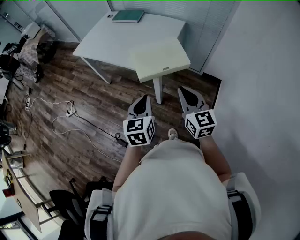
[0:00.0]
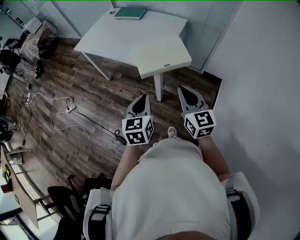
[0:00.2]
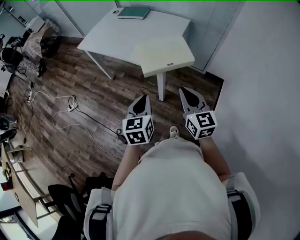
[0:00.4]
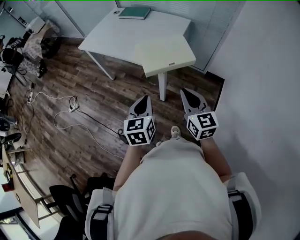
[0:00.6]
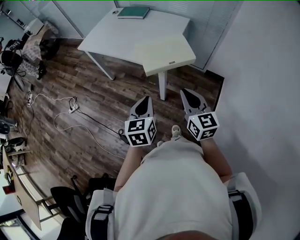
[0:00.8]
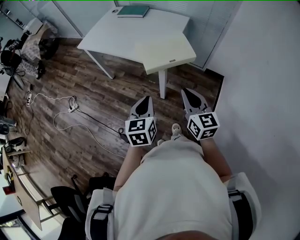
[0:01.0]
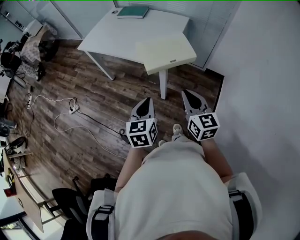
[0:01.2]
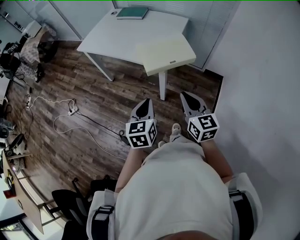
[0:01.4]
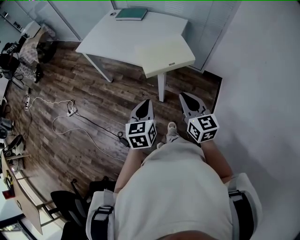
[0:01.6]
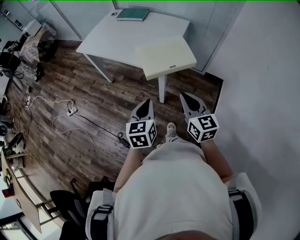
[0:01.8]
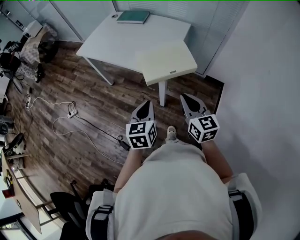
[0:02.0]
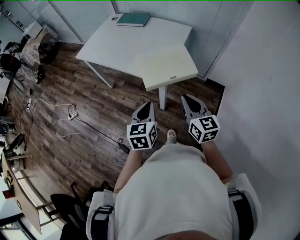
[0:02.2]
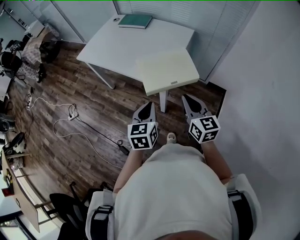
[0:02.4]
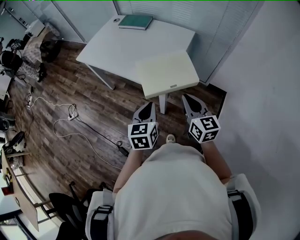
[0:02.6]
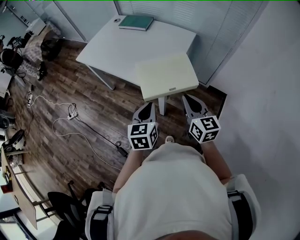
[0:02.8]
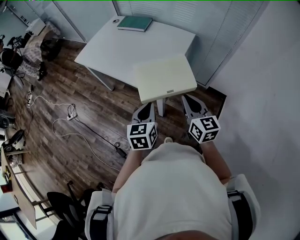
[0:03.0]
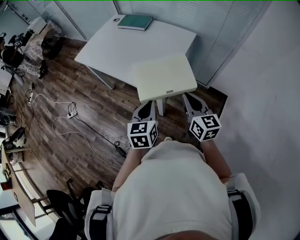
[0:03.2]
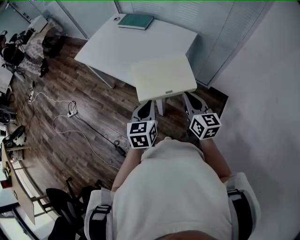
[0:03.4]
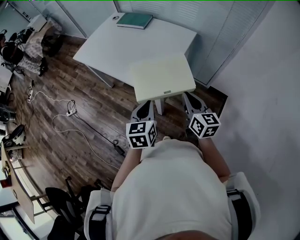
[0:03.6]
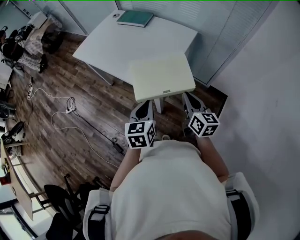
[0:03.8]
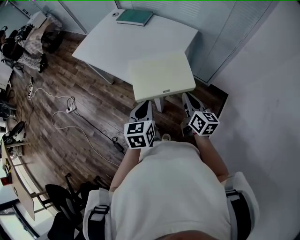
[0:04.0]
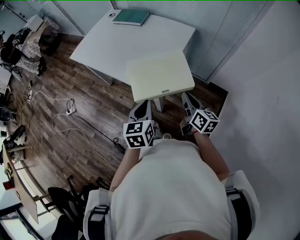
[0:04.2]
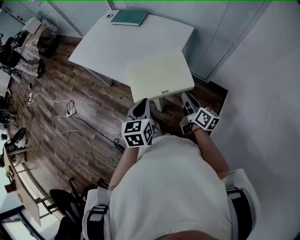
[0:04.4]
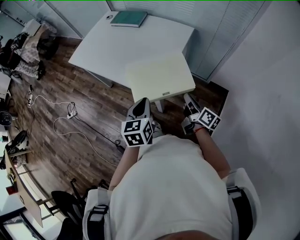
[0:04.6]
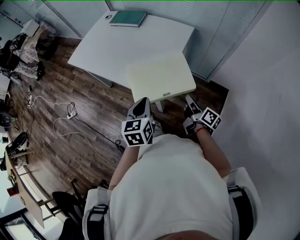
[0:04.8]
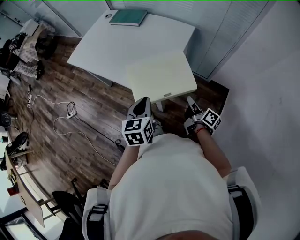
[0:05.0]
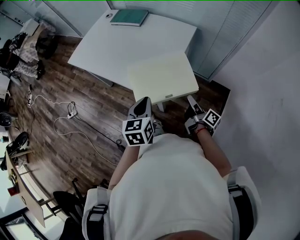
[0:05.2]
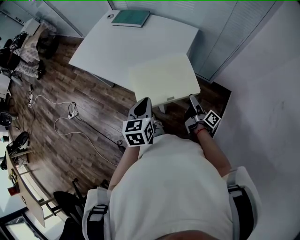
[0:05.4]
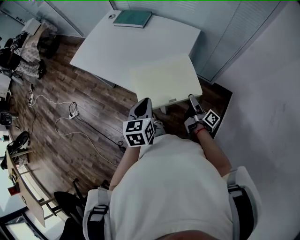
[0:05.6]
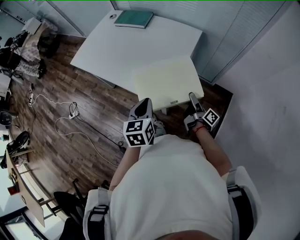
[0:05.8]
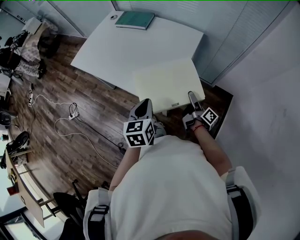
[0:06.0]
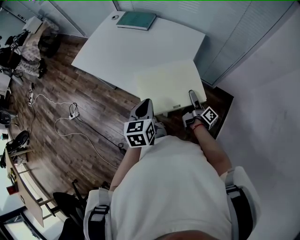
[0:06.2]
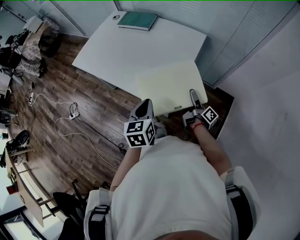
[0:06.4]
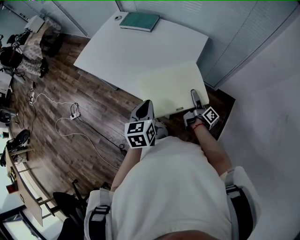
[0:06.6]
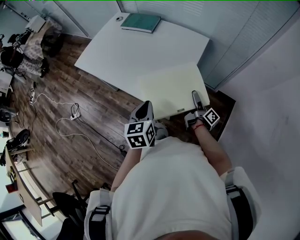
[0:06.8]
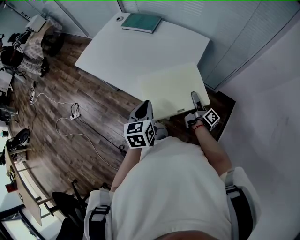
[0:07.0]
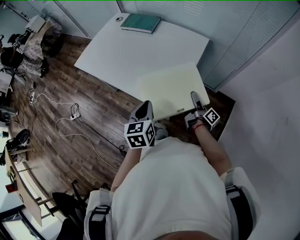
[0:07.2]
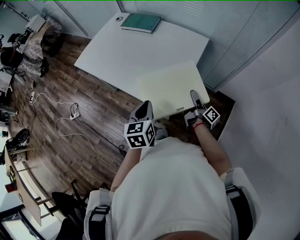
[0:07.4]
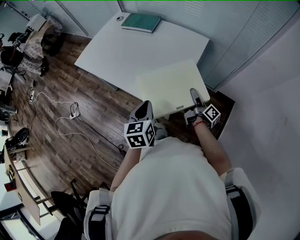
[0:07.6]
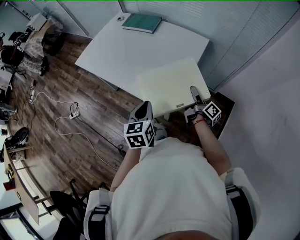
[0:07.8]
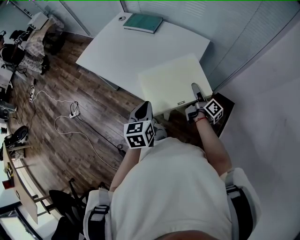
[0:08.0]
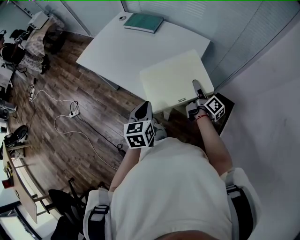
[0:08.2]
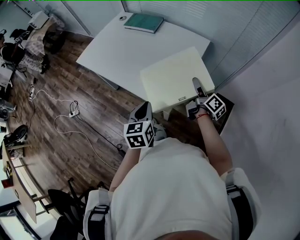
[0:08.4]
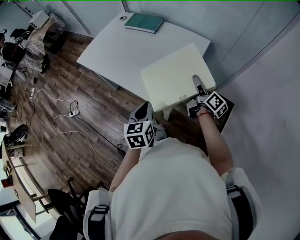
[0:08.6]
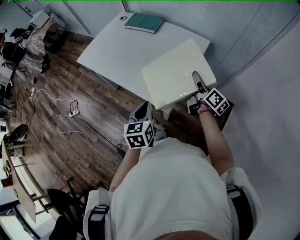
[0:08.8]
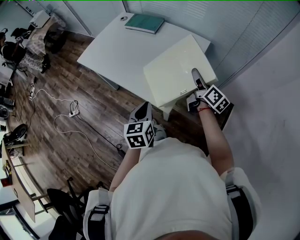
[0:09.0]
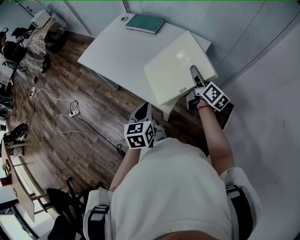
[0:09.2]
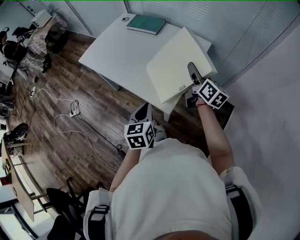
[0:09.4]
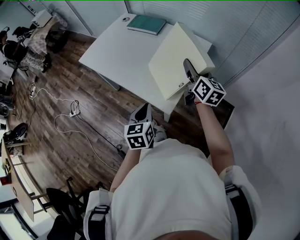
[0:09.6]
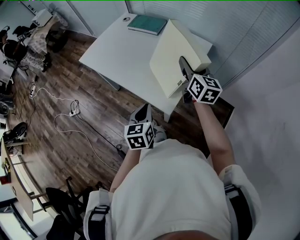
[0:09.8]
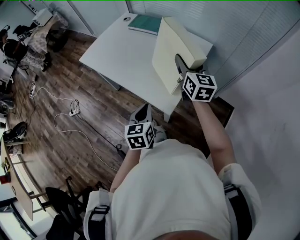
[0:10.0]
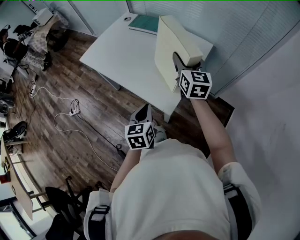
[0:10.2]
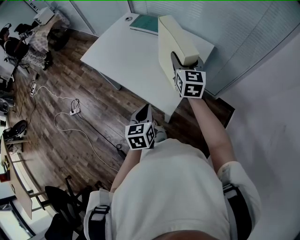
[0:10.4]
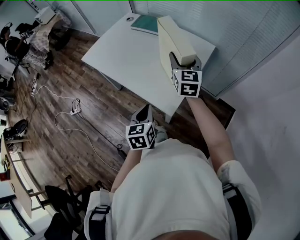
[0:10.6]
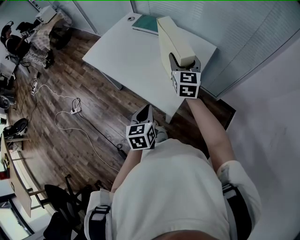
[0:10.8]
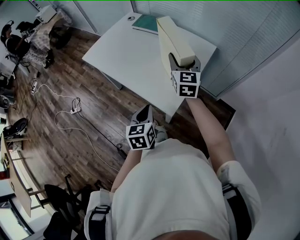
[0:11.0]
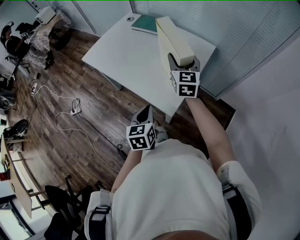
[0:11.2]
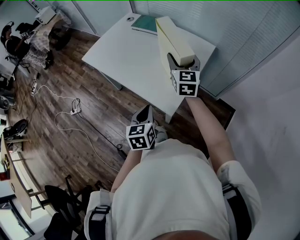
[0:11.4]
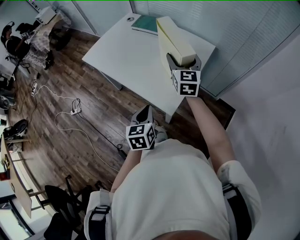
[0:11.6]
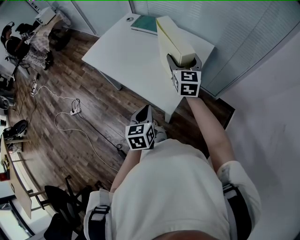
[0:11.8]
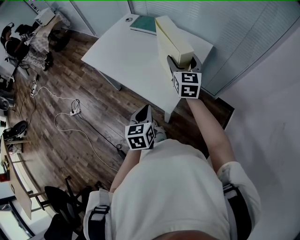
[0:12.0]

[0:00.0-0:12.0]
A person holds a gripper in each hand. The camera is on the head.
0:00.0 to 0:01.6: The left gripper shifts by some 5 cm. Meanwhile the right gripper ends up some 5 cm from where it was.
0:01.6 to 0:03.0: The grippers both shift forward by some 15 cm.
0:03.0 to 0:04.4: The right gripper goes some 10 cm downward and to the right, and swivels about 40 degrees.
0:04.4 to 0:06.0: The left gripper shifts some 5 cm forward; the right gripper goes approximately 10 cm downward and forward, rotates approximately 40 degrees, and opens up.
0:06.0 to 0:07.6: The right gripper ends up approximately 5 cm from where it was, and closes its fingers.
0:07.6 to 0:09.0: The right gripper is displaced upward and forward by approximately 15 cm, and swivels about 30 degrees.
0:09.0 to 0:10.4: The right gripper heads to the left, upward and forward, covering approximately 15 cm, and rotates around the line of its fingers by about 50 degrees, counterclockwise from behind.
0:10.4 to 0:12.0: The grippers make only small movements.

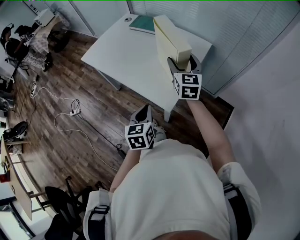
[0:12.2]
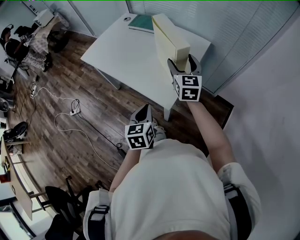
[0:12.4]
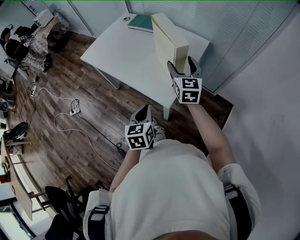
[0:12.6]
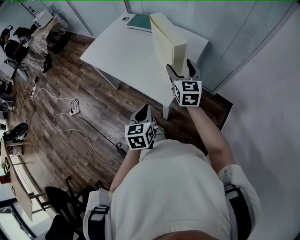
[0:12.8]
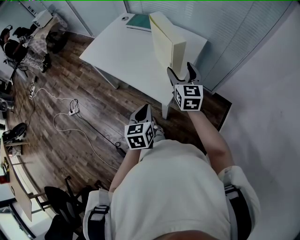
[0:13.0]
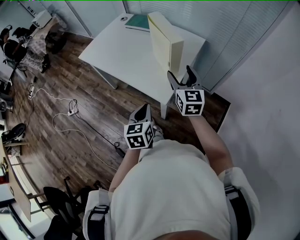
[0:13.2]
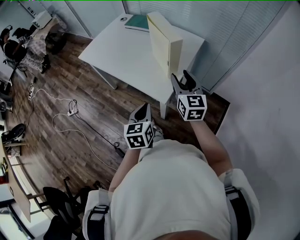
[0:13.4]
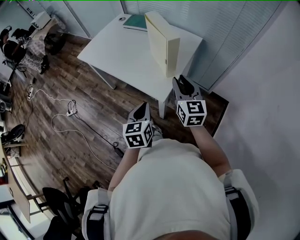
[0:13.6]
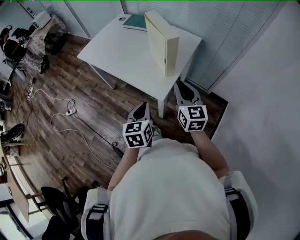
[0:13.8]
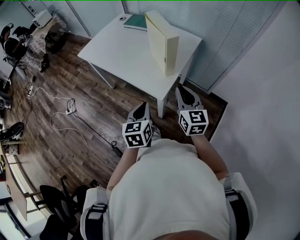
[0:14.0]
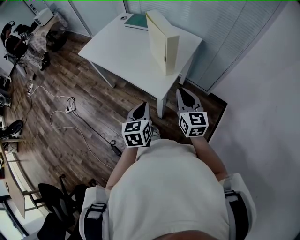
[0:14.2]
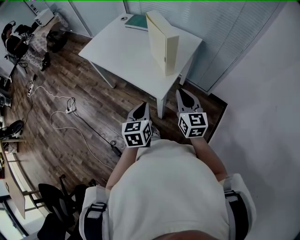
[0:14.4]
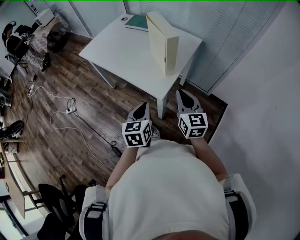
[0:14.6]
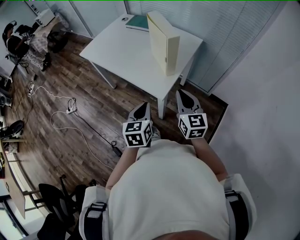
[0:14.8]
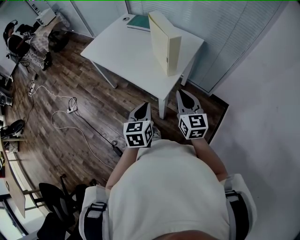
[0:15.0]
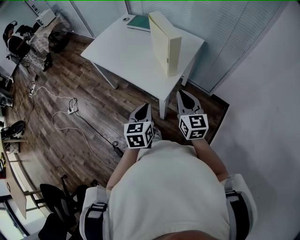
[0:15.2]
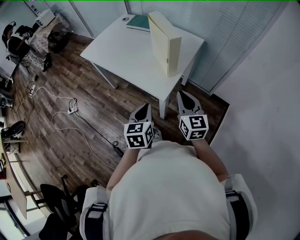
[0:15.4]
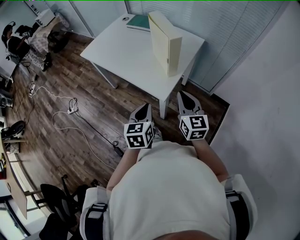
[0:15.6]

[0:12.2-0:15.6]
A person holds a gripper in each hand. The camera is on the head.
0:12.2 to 0:13.8: The left gripper heads backward, covering some 5 cm; the right gripper is displaced backward by approximately 20 cm, and closes.
0:13.8 to 0:15.6: The grippers stay close to where they were, moving slightly.

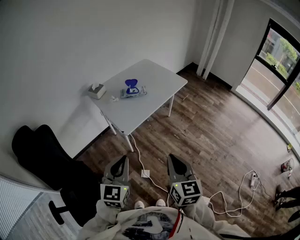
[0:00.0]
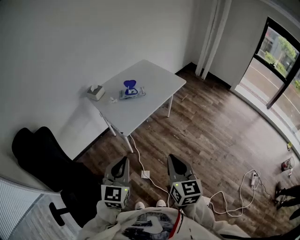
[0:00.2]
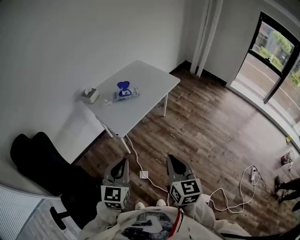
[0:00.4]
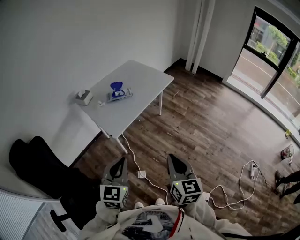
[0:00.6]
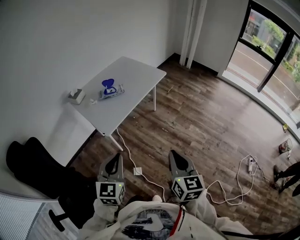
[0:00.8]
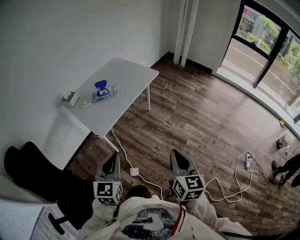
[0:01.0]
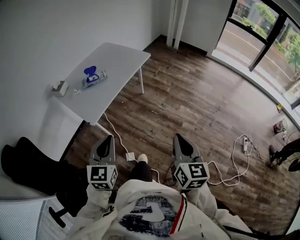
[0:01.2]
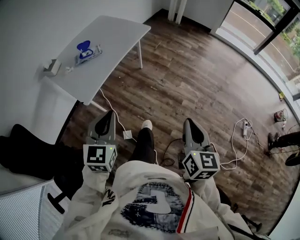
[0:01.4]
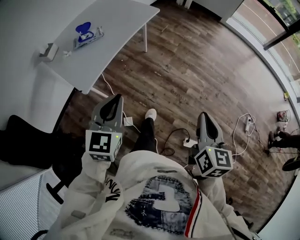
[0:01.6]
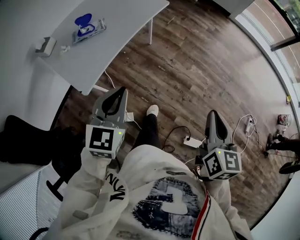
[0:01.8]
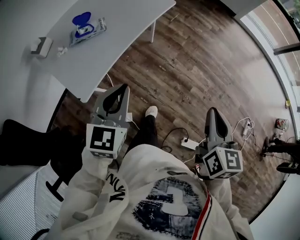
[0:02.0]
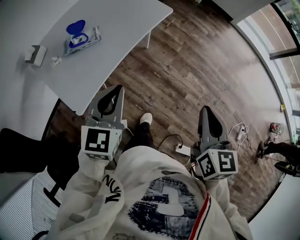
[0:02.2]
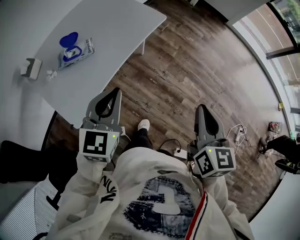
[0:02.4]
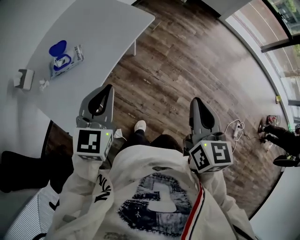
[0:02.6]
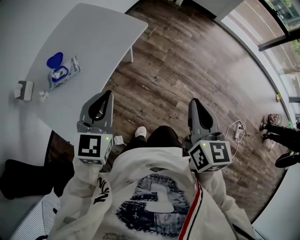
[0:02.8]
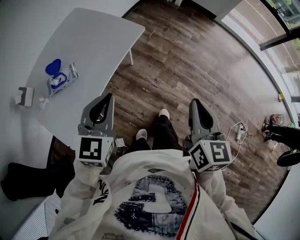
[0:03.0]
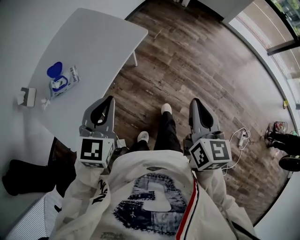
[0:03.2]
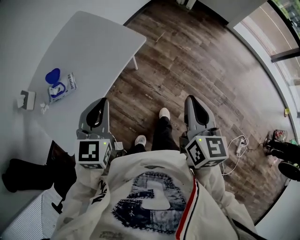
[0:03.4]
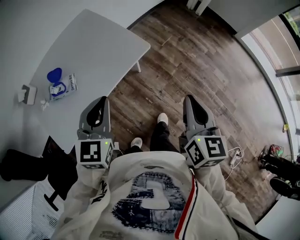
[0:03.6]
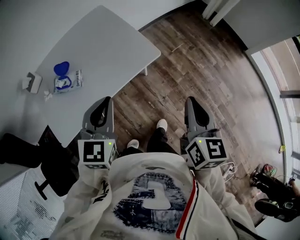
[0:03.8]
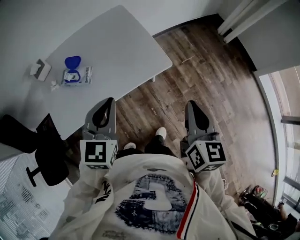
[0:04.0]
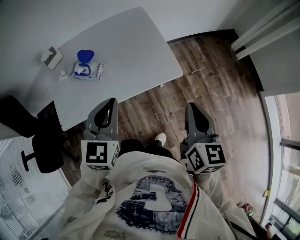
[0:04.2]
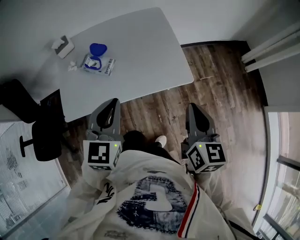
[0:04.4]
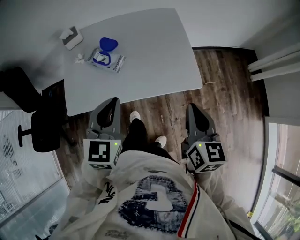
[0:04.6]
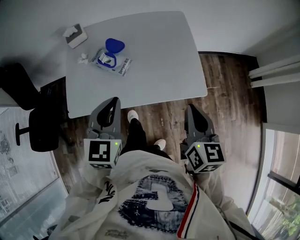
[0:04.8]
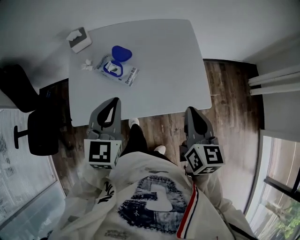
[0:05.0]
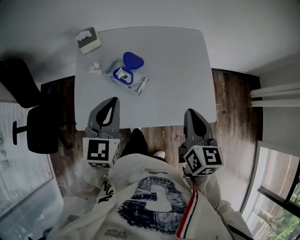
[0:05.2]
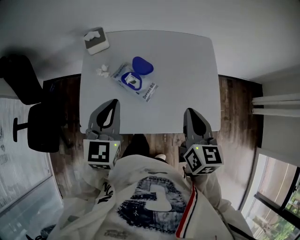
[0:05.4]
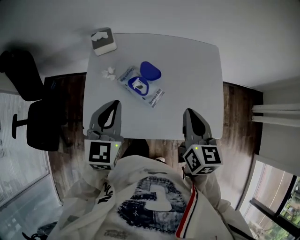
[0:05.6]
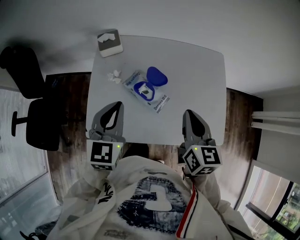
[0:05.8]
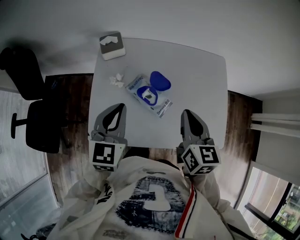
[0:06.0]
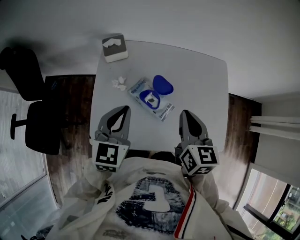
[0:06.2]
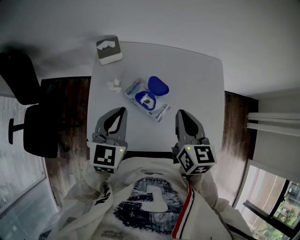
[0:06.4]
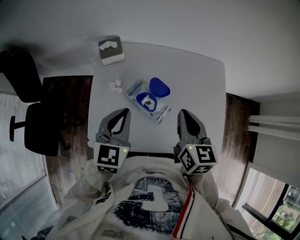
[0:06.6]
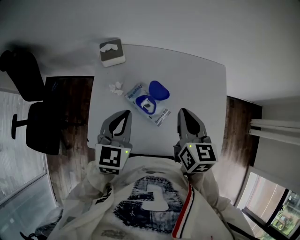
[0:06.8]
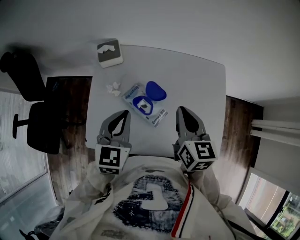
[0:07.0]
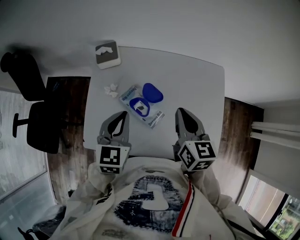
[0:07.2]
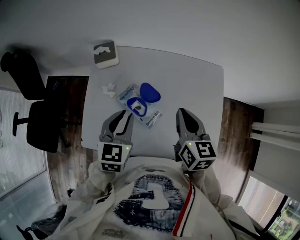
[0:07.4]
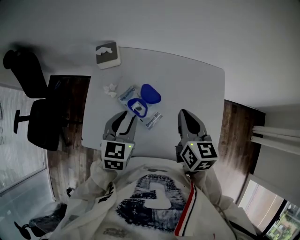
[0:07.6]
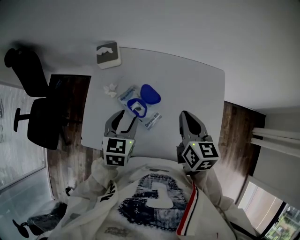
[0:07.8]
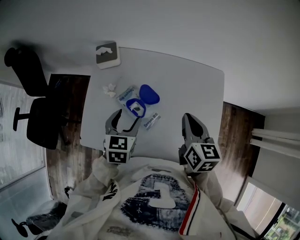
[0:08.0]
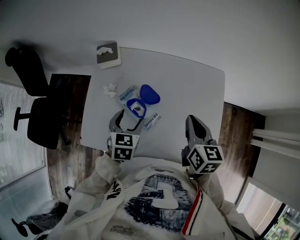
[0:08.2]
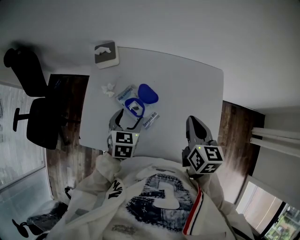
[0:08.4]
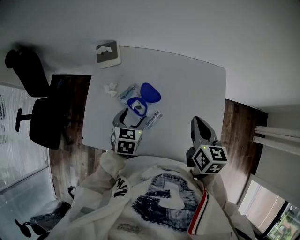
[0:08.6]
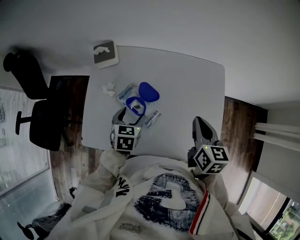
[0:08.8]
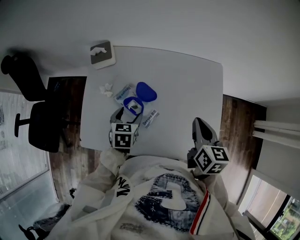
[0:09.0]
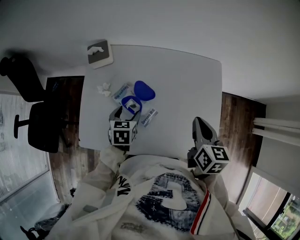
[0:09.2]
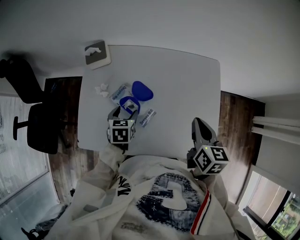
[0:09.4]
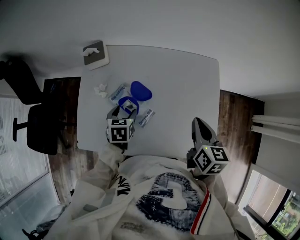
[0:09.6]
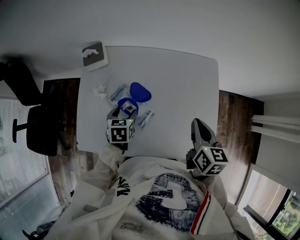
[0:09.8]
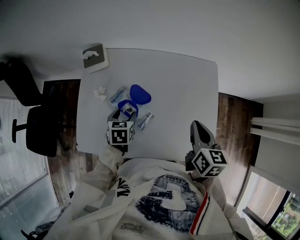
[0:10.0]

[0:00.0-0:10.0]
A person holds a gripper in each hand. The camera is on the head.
0:00.0 to 0:01.4: The right gripper heads to the right, covering about 25 cm, and changes its angle by about 20 degrees, while the left gripper is displaced to the right and forward by about 20 cm.
0:01.4 to 0:02.8: Both grippers travel together forward, some 35 cm.
0:02.8 to 0:04.2: The right gripper ends up some 30 cm from where it was, and swivels approximately 40 degrees. Meanwhile the left gripper shifts by some 15 cm, and turns by approximately 40 degrees.
0:04.2 to 0:05.8: Both grippers travel together to the left and forward, about 35 cm. The left gripper turns by approximately 20 degrees, while the right gripper changes its angle by some 30 degrees.
0:05.8 to 0:07.2: The right gripper heads forward, covering roughly 10 cm, while the left gripper shifts by roughly 5 cm.
0:07.2 to 0:08.6: The left gripper shifts roughly 10 cm downward, and opens its fingers, while the right gripper goes approximately 10 cm to the right.
0:08.6 to 0:10.0: The left gripper shifts roughly 5 cm downward.
